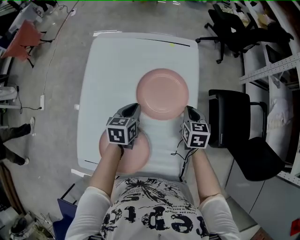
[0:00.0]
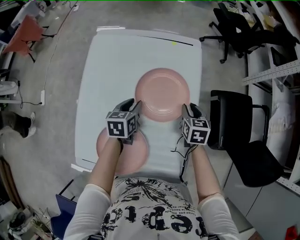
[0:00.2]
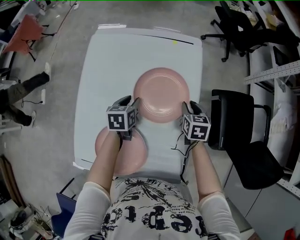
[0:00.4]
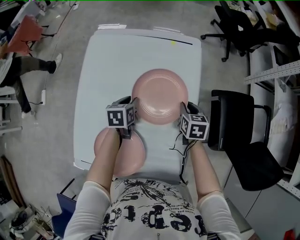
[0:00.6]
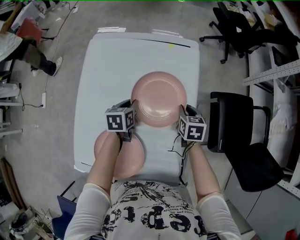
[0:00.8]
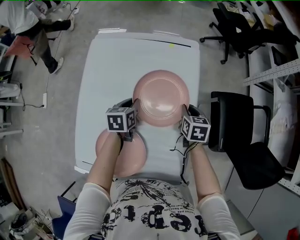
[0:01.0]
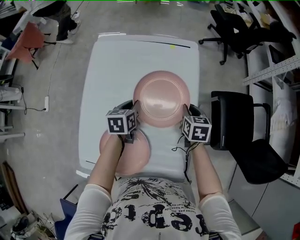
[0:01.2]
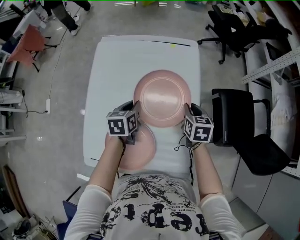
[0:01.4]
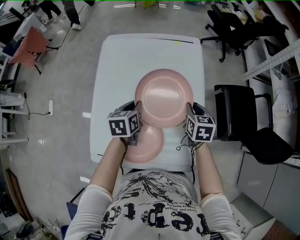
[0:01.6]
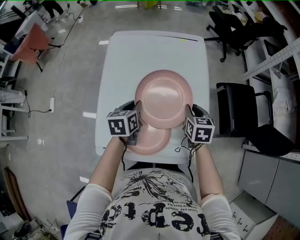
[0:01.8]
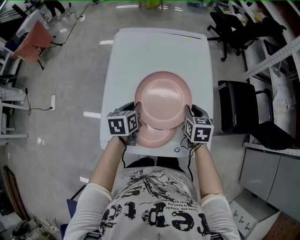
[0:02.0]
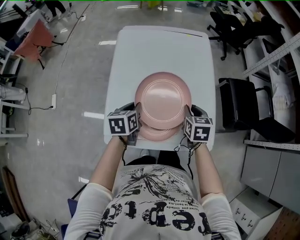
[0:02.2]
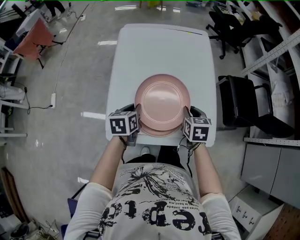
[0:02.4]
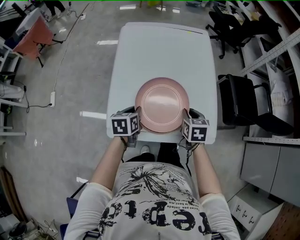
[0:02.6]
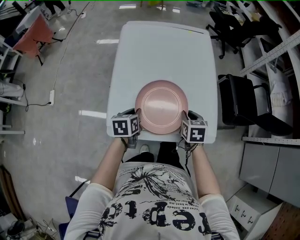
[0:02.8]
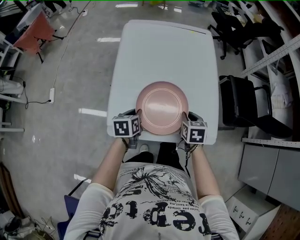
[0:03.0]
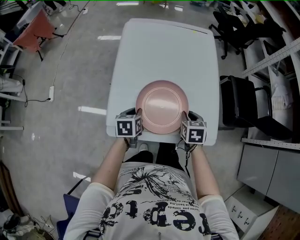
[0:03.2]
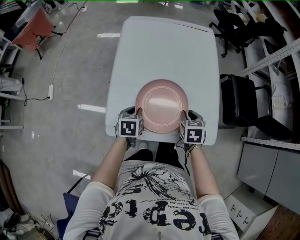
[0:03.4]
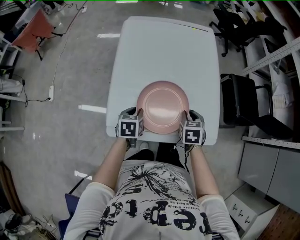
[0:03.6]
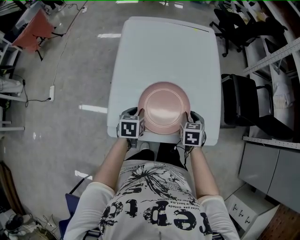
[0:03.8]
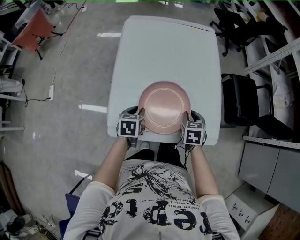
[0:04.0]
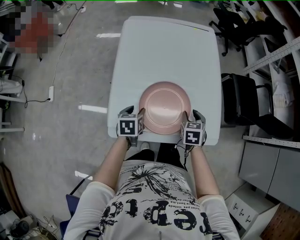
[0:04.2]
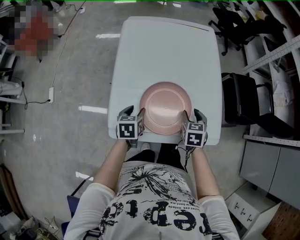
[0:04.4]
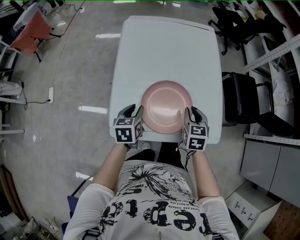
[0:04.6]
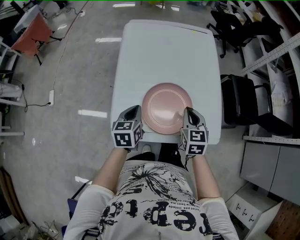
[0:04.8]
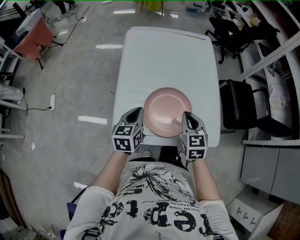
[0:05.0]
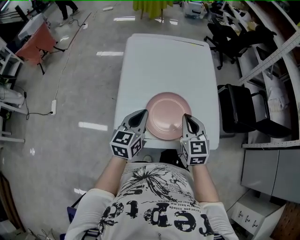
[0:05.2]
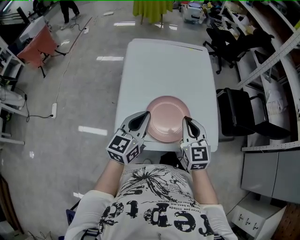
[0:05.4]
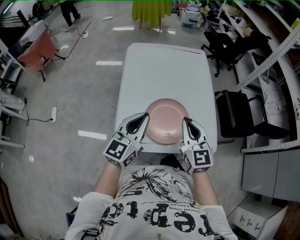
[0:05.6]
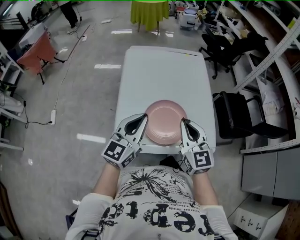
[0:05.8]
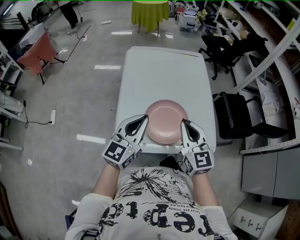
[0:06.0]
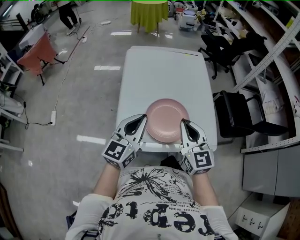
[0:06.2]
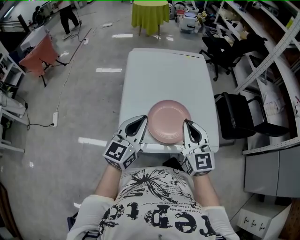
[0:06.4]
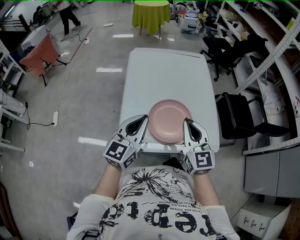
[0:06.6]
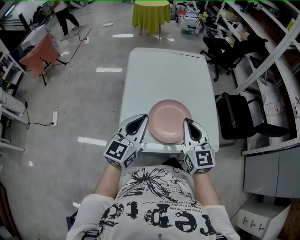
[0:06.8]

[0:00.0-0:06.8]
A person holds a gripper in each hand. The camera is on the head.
0:00.0 to 0:01.4: The left gripper reaches approximately 5 cm downward, then returns.
0:01.4 to 0:02.8: Both grippers move backward and to the left, approximately 30 cm.
0:02.8 to 0:04.0: The grippers move only a little.
0:04.0 to 0:05.4: The left gripper travels upward by approximately 20 cm, tilts its fingers approximately 40 degrees upward, and closes its fingers. The right gripper moves upward and to the left, roughly 20 cm, tilts its fingers approximately 40 degrees upward, and closes its fingers.
0:05.4 to 0:06.8: The left gripper ends up some 5 cm from where it was, while the right gripper travels upward by approximately 5 cm.

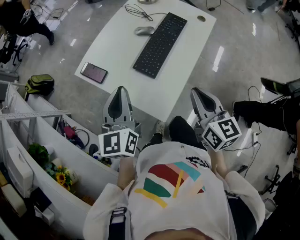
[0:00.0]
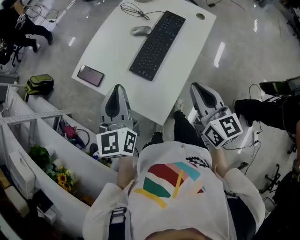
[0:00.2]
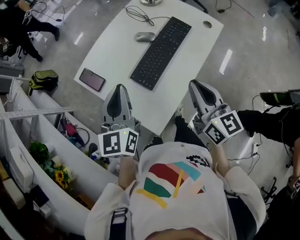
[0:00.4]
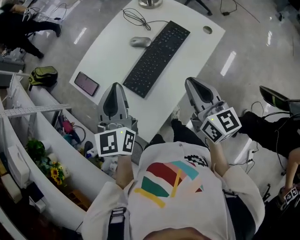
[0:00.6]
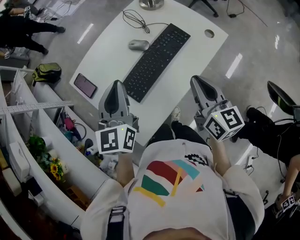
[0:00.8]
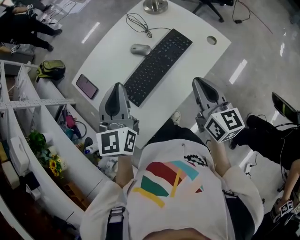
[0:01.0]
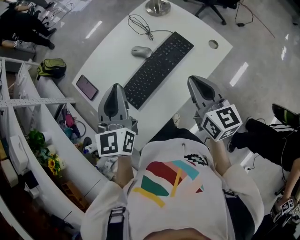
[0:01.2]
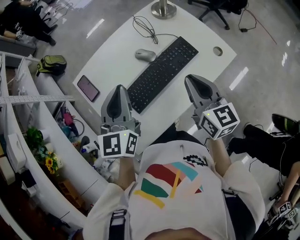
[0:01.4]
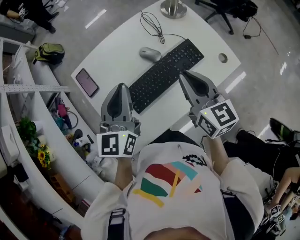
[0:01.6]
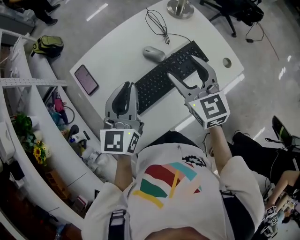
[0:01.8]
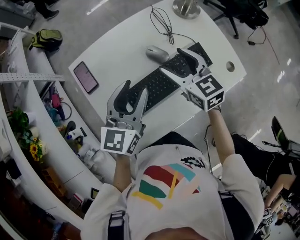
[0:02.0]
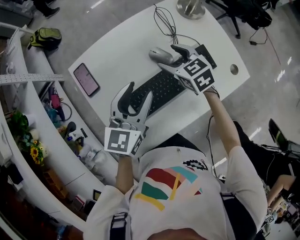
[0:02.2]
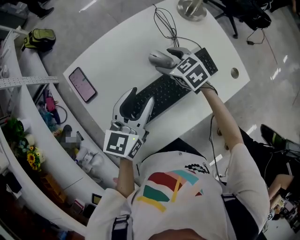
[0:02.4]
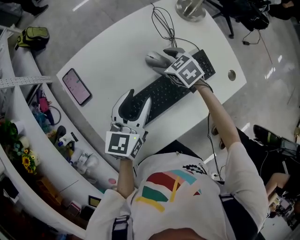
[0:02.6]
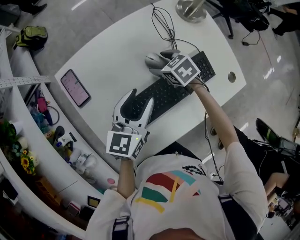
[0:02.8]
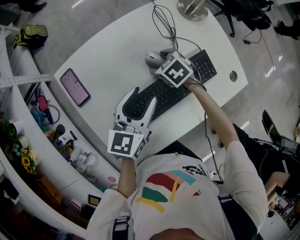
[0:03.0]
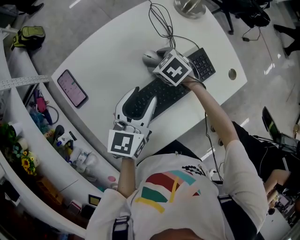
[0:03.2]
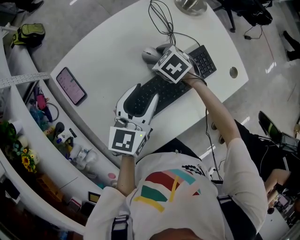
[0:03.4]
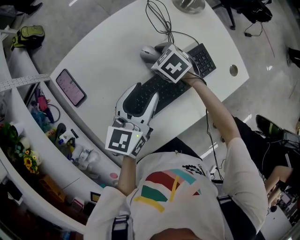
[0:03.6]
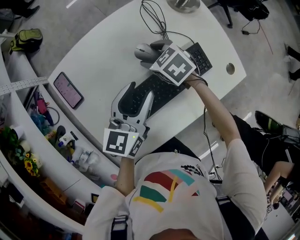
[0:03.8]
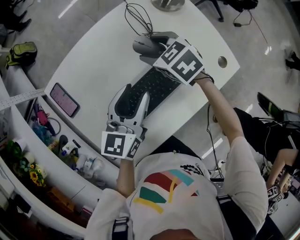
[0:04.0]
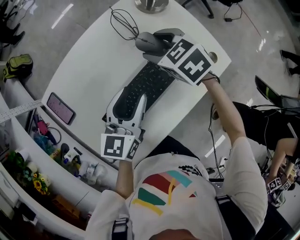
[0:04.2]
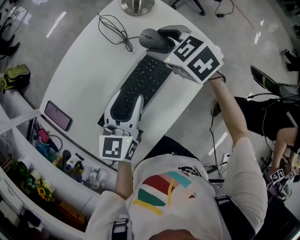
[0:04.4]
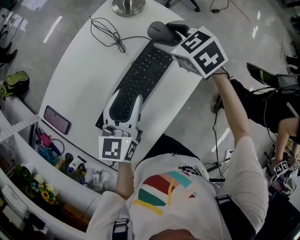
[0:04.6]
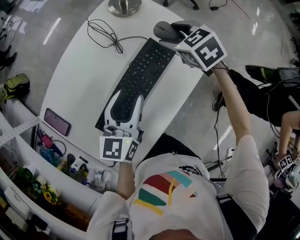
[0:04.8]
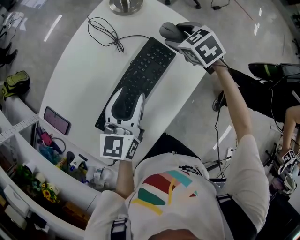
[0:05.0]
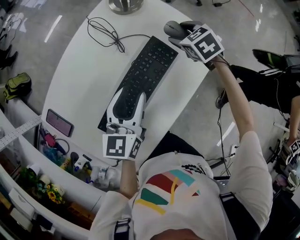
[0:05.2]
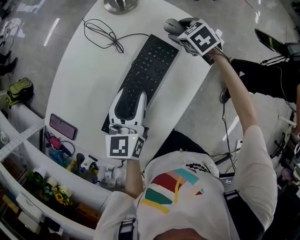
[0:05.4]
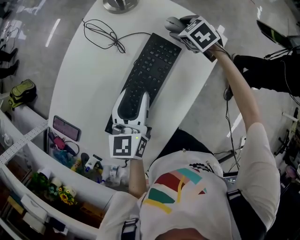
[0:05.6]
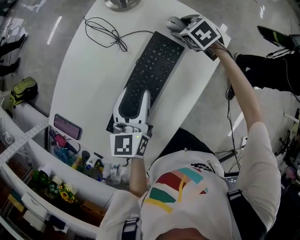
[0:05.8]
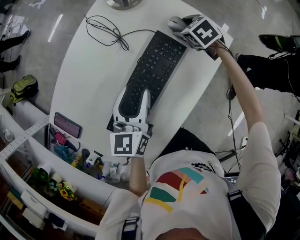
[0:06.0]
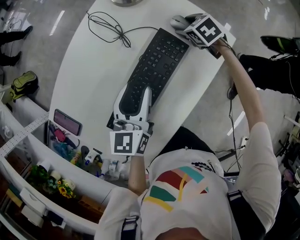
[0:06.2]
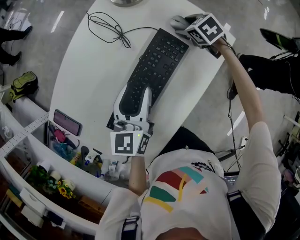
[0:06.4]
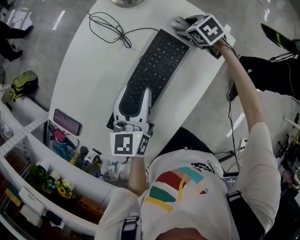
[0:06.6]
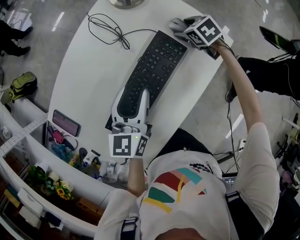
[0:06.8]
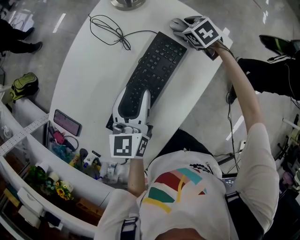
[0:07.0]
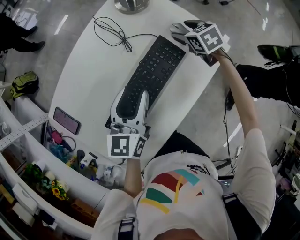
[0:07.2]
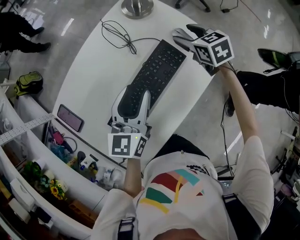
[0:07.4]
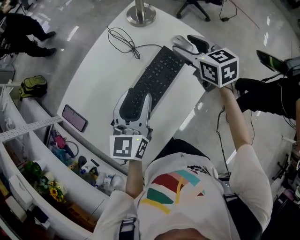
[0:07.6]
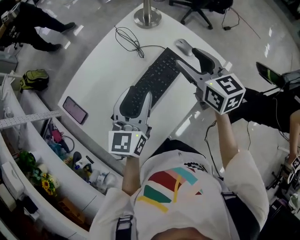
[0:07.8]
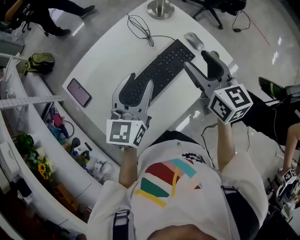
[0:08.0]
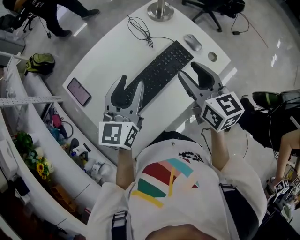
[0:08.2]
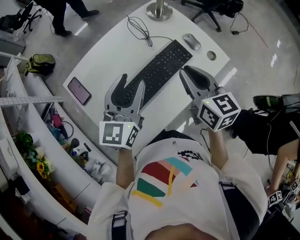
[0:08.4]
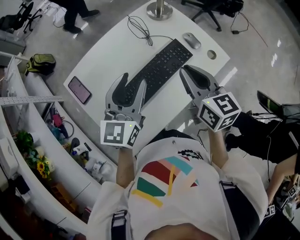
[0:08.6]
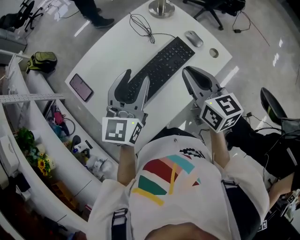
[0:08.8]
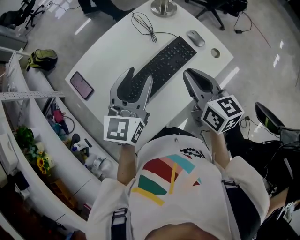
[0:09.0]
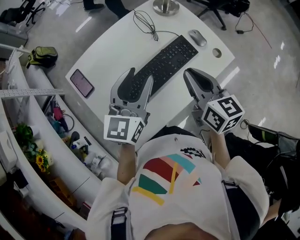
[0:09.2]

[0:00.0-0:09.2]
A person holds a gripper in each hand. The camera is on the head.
0:00.0 to 0:01.6: The left gripper moves forward and to the right, some 20 cm; the right gripper travels forward by about 25 cm, and swivels about 30 degrees.
0:01.6 to 0:03.0: The left gripper goes about 15 cm downward and forward, and opens up, while the right gripper goes some 30 cm downward and forward, points its fingers approximately 50 degrees further downward, and opens up.
0:03.0 to 0:04.6: The right gripper heads to the right and upward, covering about 25 cm, and turns by roughly 20 degrees; the left gripper travels to the right by approximately 10 cm.
0:04.6 to 0:06.2: The right gripper heads downward and to the right, covering approximately 20 cm. The left gripper changes place by about 5 cm.
0:06.2 to 0:07.6: The left gripper moves upward, approximately 10 cm; the right gripper heads upward and backward, covering roughly 20 cm, and angles its fingers upward, by approximately 30 degrees.
0:07.6 to 0:09.2: The right gripper shifts about 20 cm backward and to the left, and closes its fingers, while the left gripper goes approximately 10 cm upward and backward.

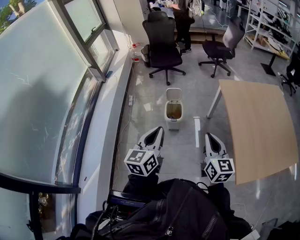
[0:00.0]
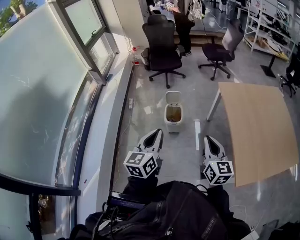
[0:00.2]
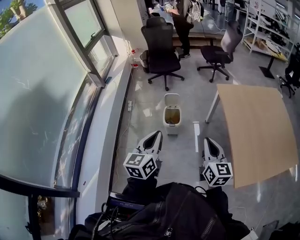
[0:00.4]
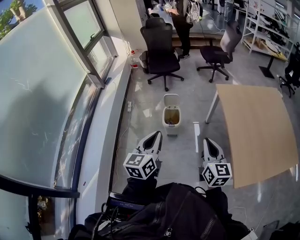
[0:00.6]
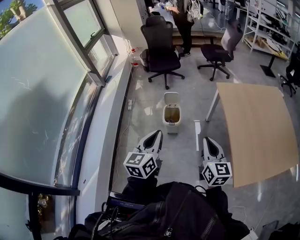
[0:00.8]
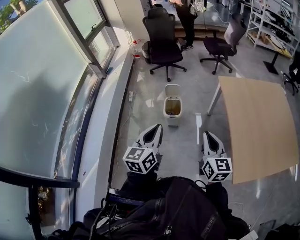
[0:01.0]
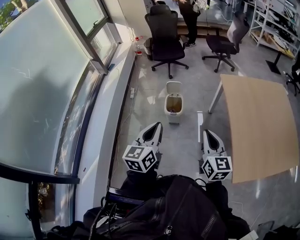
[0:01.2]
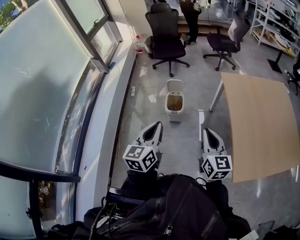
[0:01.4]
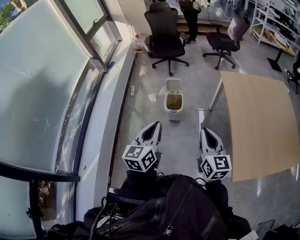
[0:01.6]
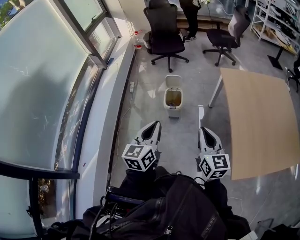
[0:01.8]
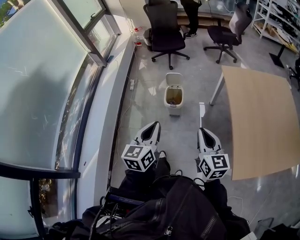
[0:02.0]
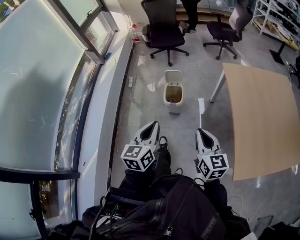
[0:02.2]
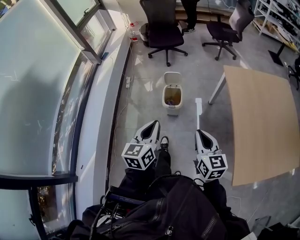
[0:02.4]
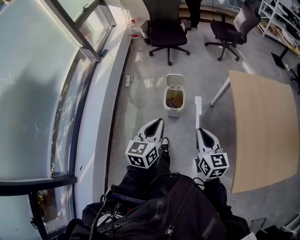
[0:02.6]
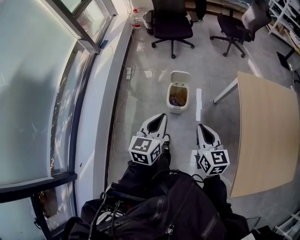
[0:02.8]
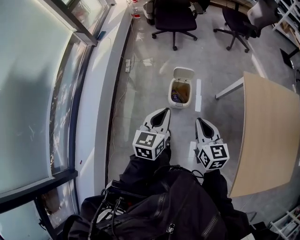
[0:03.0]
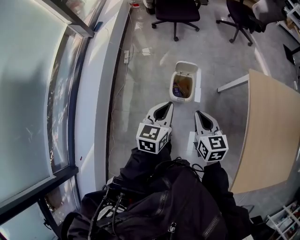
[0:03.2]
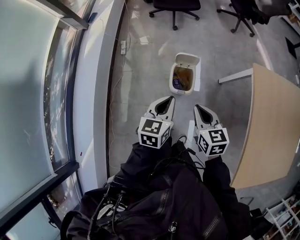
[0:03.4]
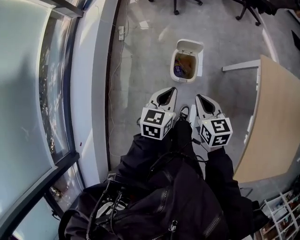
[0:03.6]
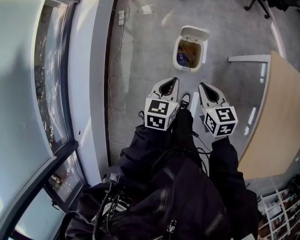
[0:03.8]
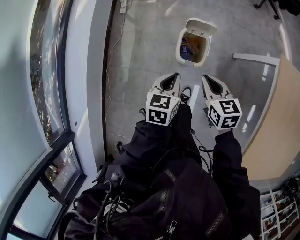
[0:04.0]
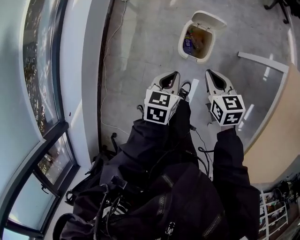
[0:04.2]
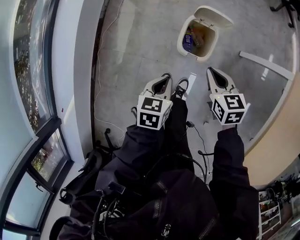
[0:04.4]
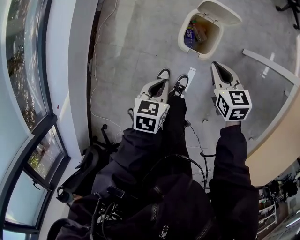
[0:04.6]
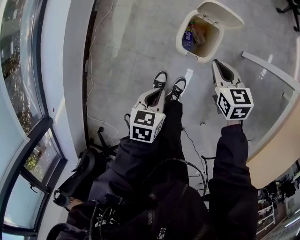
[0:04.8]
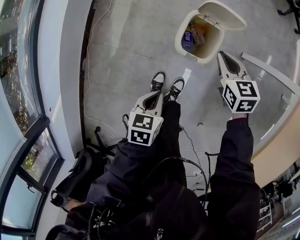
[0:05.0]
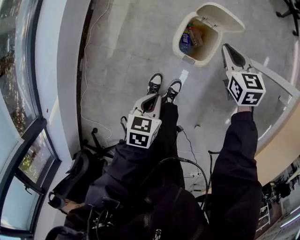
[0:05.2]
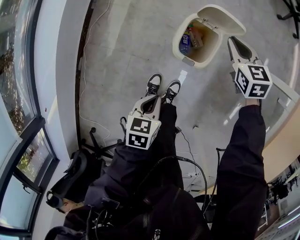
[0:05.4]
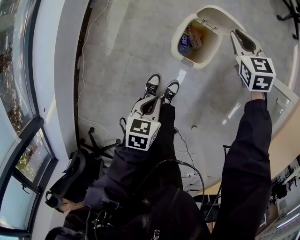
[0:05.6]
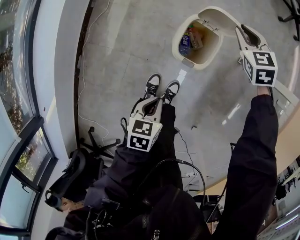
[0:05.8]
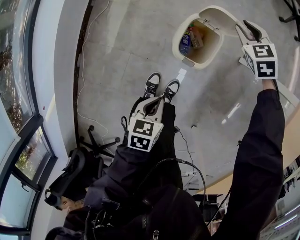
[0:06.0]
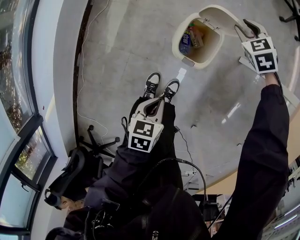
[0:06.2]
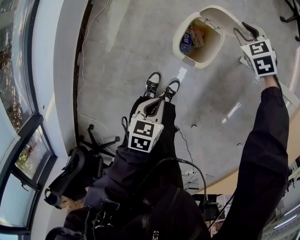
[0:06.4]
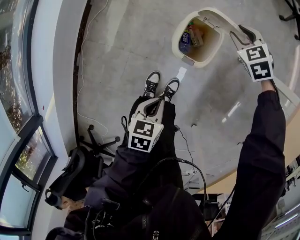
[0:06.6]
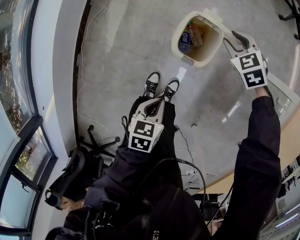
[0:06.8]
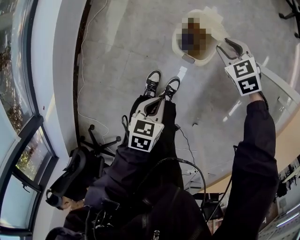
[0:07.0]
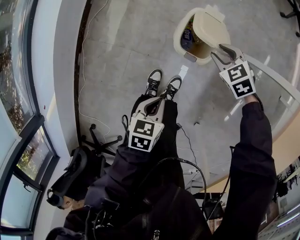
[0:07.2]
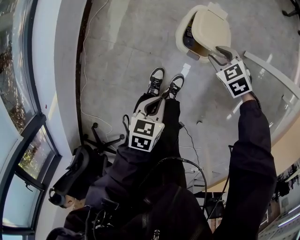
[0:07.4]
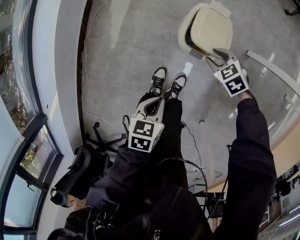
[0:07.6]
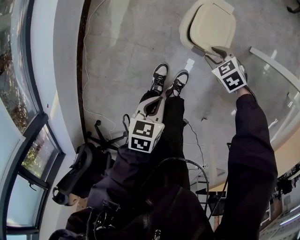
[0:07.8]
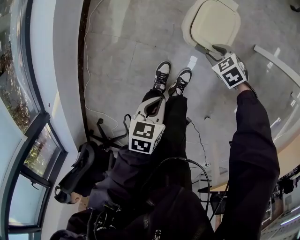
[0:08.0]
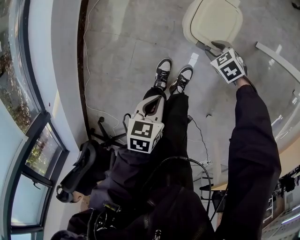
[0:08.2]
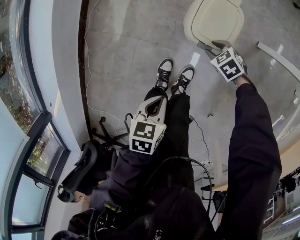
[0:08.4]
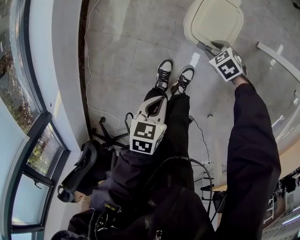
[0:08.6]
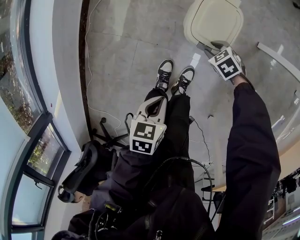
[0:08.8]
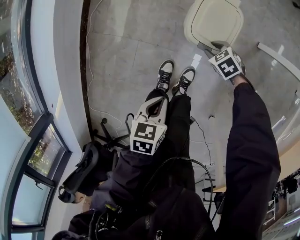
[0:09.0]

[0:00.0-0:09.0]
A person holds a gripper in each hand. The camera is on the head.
0:00.0 to 0:01.6: There are only small adjustments of the grippers.
0:01.6 to 0:03.0: The left gripper goes about 30 cm forward and downward. Meanwhile the right gripper is displaced forward, to the left and downward by some 35 cm.
0:03.0 to 0:04.4: The left gripper is displaced downward by approximately 35 cm, and points its fingers approximately 30 degrees further downward; the right gripper shifts about 35 cm downward and forward, and rotates some 30 degrees.
0:04.4 to 0:06.0: The right gripper moves forward and downward, some 25 cm, turns by about 40 degrees, and opens its fingers; the left gripper goes some 10 cm downward.
0:06.0 to 0:07.6: The right gripper moves backward and downward, about 25 cm, and changes its angle by roughly 20 degrees.
0:07.6 to 0:09.0: The right gripper is displaced downward by roughly 10 cm.
